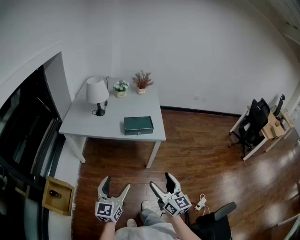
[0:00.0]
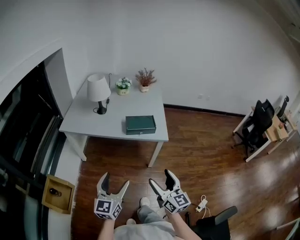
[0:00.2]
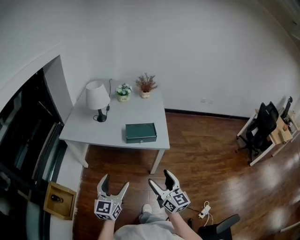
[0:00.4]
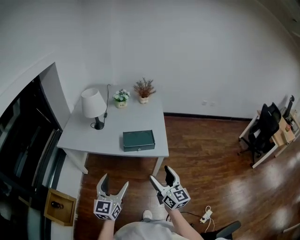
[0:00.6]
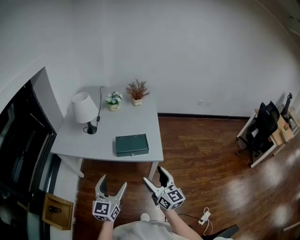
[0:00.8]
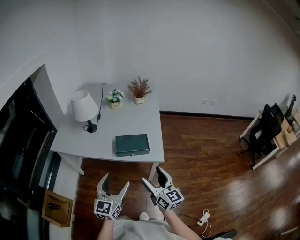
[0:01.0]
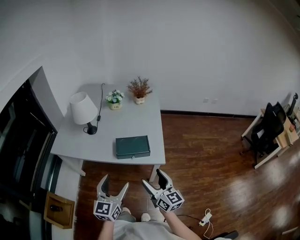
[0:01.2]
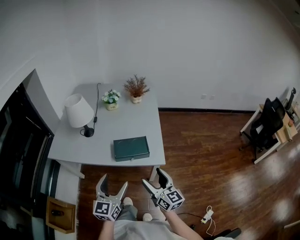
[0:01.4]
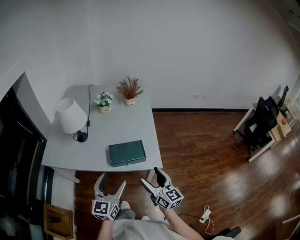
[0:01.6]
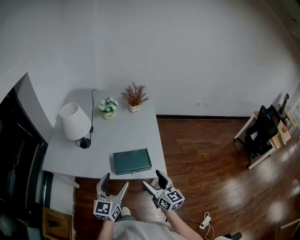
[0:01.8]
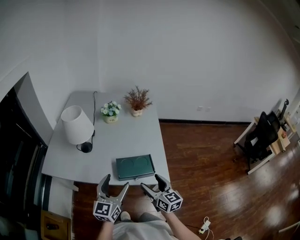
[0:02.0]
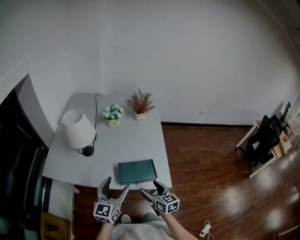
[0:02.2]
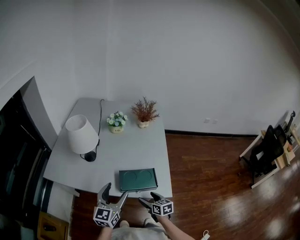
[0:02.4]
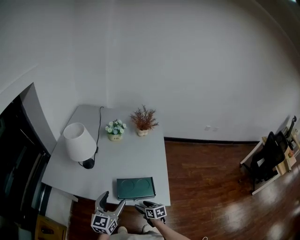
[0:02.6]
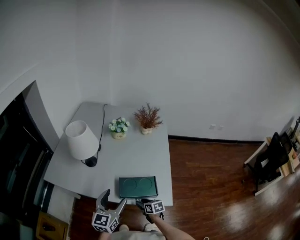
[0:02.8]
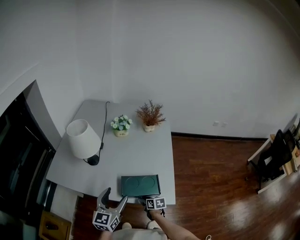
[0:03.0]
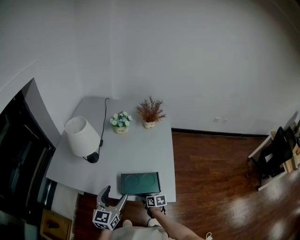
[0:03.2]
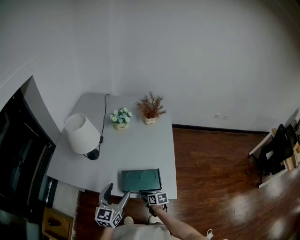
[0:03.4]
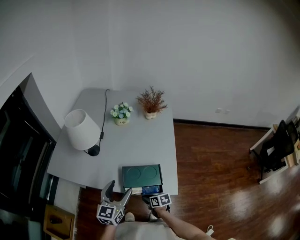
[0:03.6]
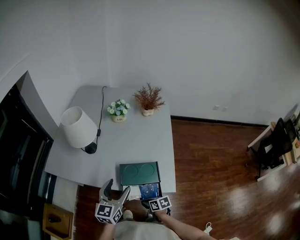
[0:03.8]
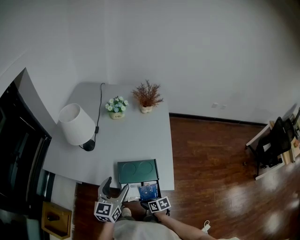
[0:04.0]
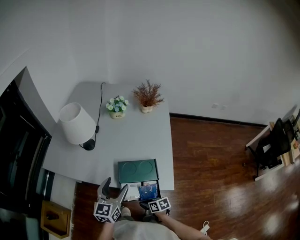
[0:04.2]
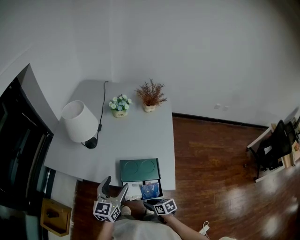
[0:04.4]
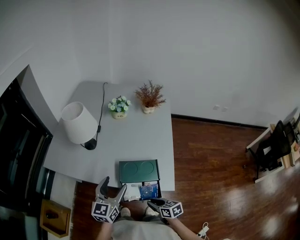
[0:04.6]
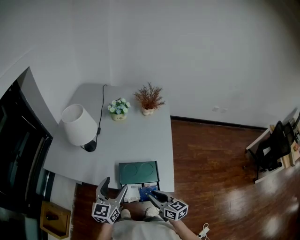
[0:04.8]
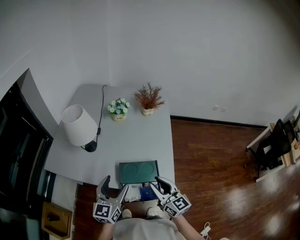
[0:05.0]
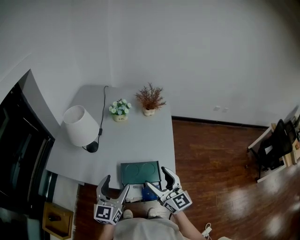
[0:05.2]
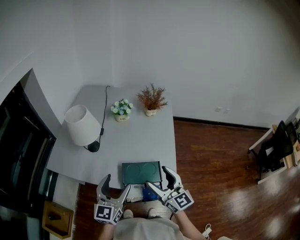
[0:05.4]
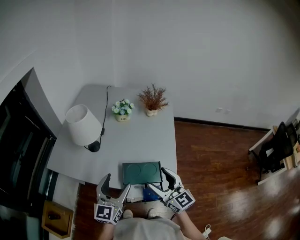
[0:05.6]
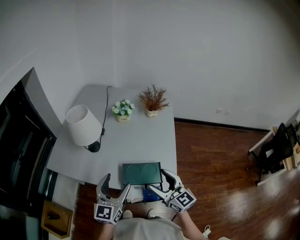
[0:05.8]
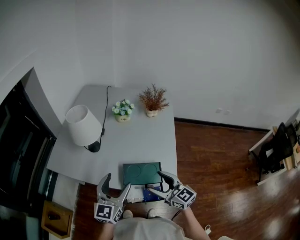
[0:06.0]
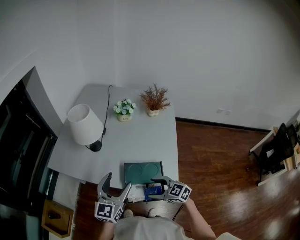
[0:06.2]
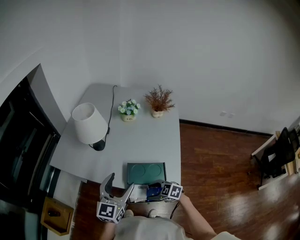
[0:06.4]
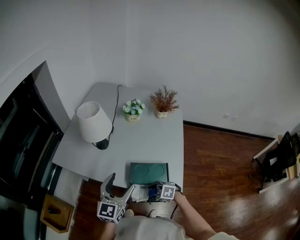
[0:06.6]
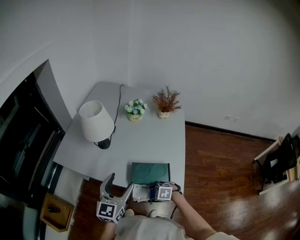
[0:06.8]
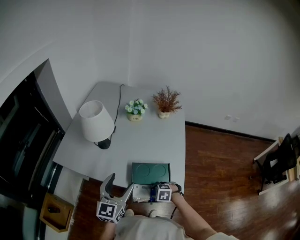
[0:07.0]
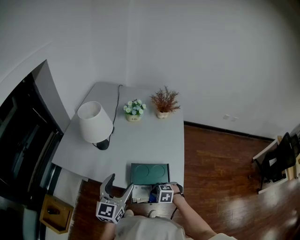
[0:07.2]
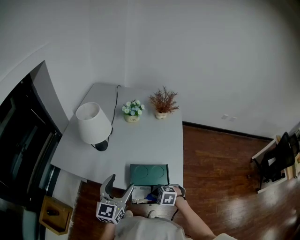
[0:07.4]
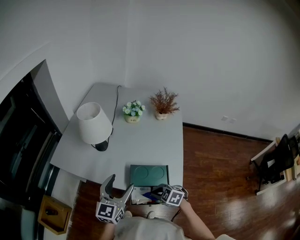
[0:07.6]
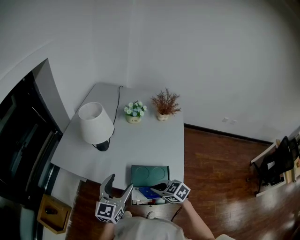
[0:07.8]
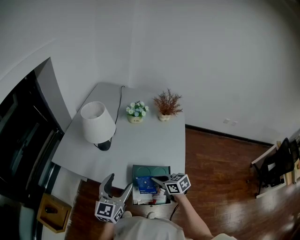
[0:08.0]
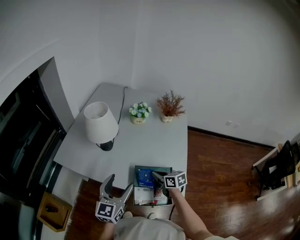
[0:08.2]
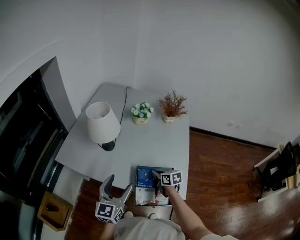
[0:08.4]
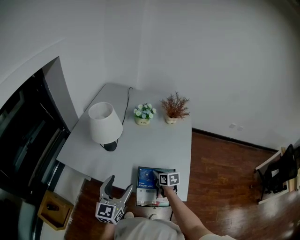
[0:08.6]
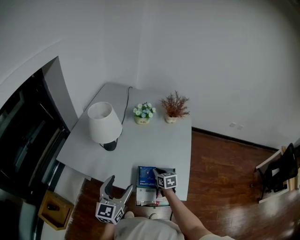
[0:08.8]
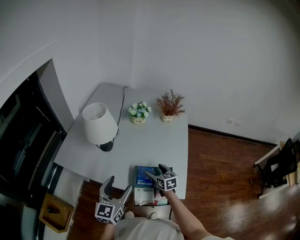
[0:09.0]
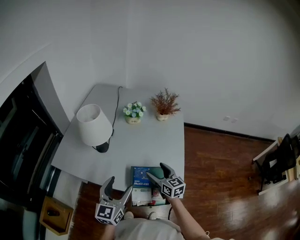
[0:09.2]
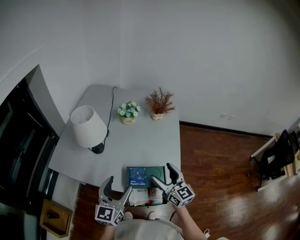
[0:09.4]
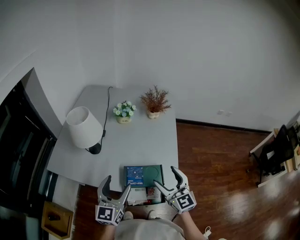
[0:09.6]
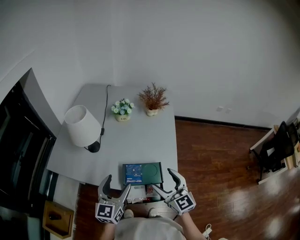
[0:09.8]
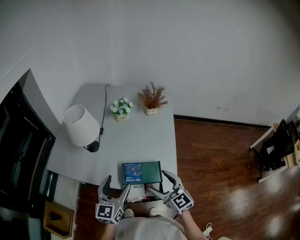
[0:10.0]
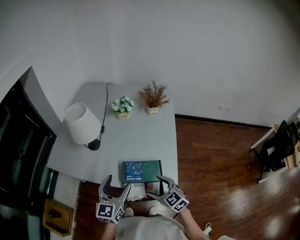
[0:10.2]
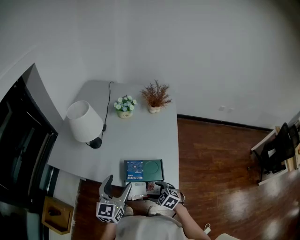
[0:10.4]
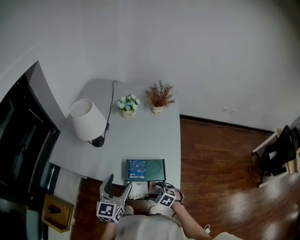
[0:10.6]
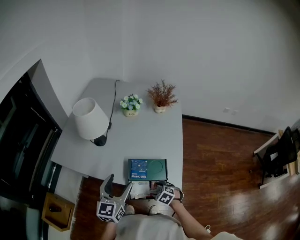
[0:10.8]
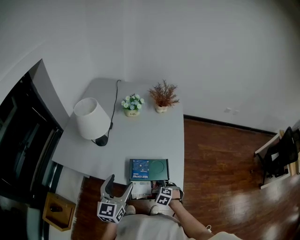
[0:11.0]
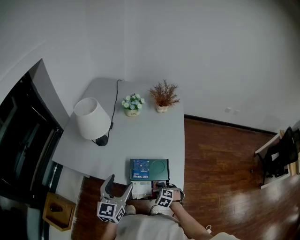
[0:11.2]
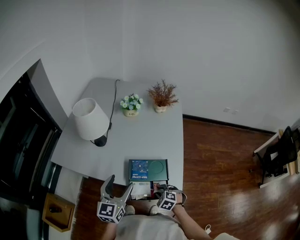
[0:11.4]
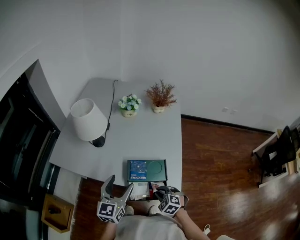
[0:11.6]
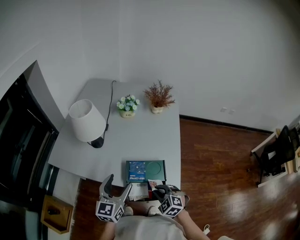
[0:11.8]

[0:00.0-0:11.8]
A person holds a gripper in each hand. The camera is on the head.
0:00.0 to 0:01.4: Both grippers travel together forward, roughly 30 cm.
0:01.4 to 0:03.0: The right gripper moves downward and forward, roughly 35 cm, tips its fingers downward by some 50 degrees, and closes its fingers, while the left gripper travels forward by roughly 20 cm.
0:03.0 to 0:04.4: The right gripper shifts approximately 15 cm backward.
0:04.4 to 0:06.0: The left gripper shifts some 5 cm upward; the right gripper is displaced upward and forward by about 30 cm, tips its fingers upward by about 40 degrees, and opens its fingers.
0:06.0 to 0:07.4: The right gripper is displaced downward by about 20 cm, points its fingers roughly 60 degrees further downward, and closes up.
0:07.4 to 0:08.8: The right gripper moves forward, about 20 cm, and rotates around the line of its fingers by about 60 degrees, clockwise from behind.
0:08.8 to 0:10.4: The right gripper heads backward, covering about 20 cm, goes upward and returns, about 25 cm each way, turns by about 40 degrees, and opens, while the left gripper heads to the right, covering roughly 5 cm.
0:10.4 to 0:11.8: The right gripper closes its fingers.

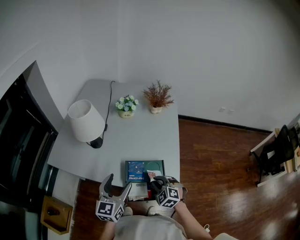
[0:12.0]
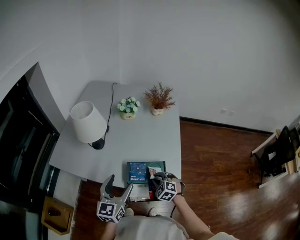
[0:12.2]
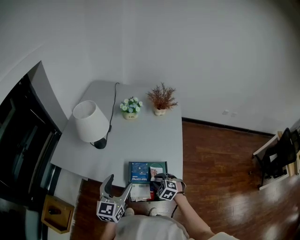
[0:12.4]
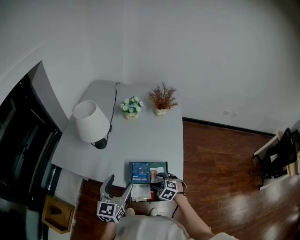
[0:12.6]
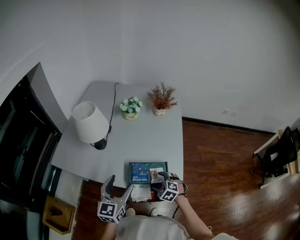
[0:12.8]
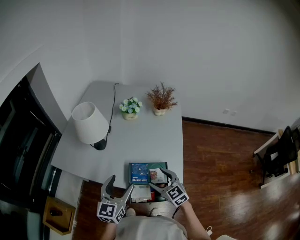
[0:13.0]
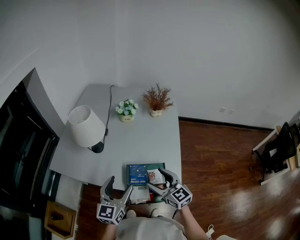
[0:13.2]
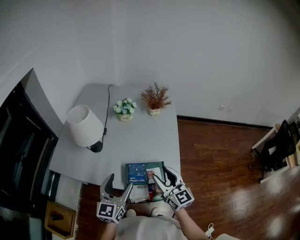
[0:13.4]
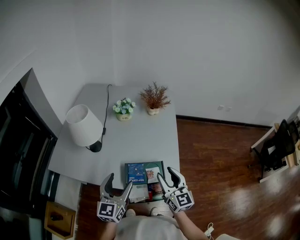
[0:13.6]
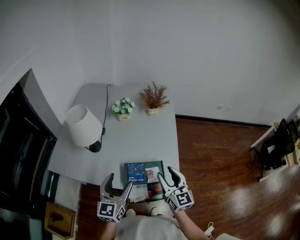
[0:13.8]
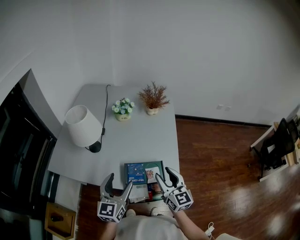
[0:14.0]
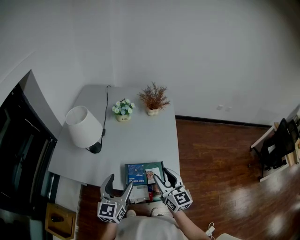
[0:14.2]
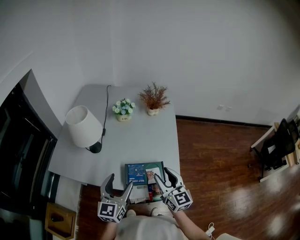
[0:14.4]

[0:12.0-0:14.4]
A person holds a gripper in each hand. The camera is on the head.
0:12.0 to 0:13.2: The right gripper goes roughly 15 cm upward, angles its fingers upward, by some 40 degrees, and opens up.

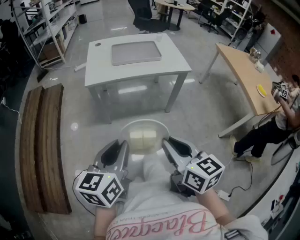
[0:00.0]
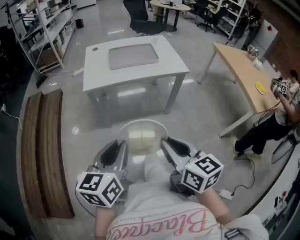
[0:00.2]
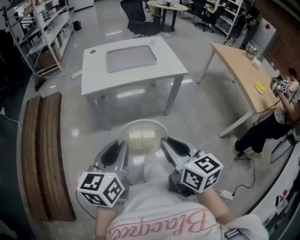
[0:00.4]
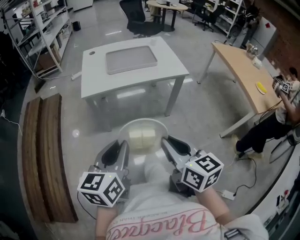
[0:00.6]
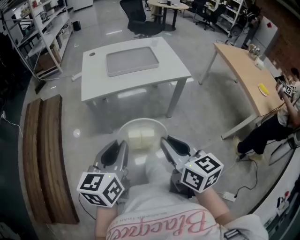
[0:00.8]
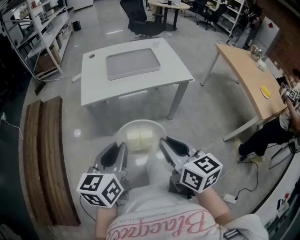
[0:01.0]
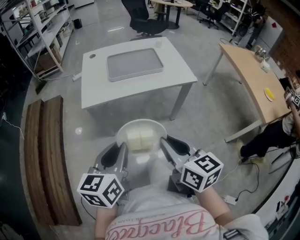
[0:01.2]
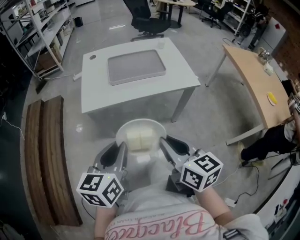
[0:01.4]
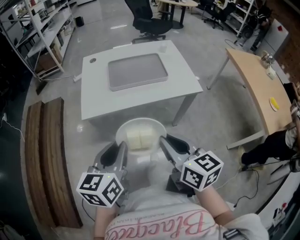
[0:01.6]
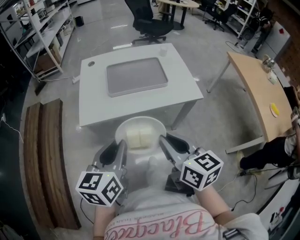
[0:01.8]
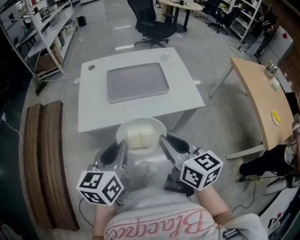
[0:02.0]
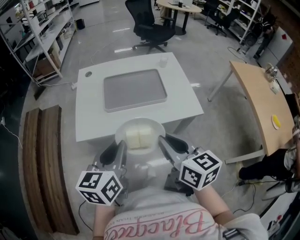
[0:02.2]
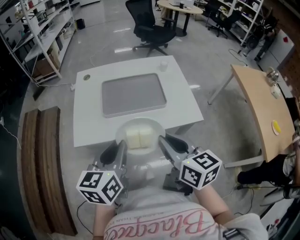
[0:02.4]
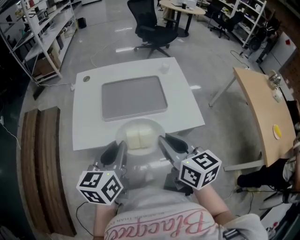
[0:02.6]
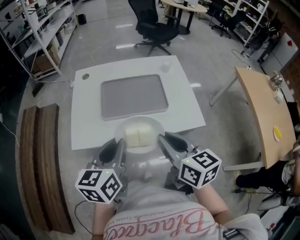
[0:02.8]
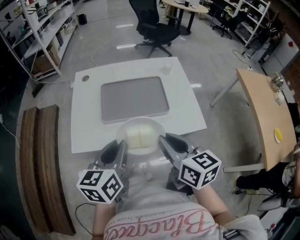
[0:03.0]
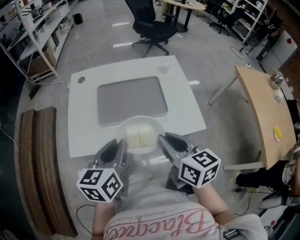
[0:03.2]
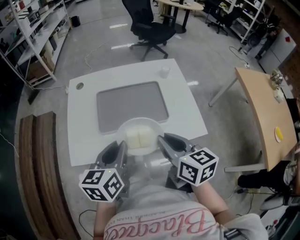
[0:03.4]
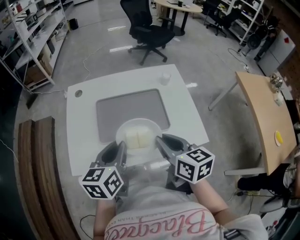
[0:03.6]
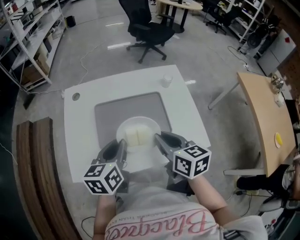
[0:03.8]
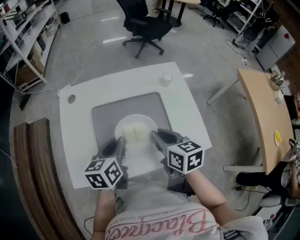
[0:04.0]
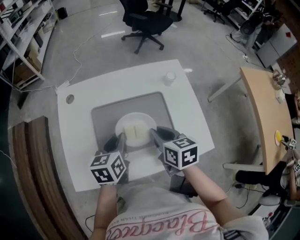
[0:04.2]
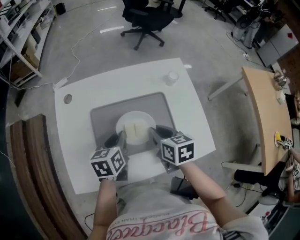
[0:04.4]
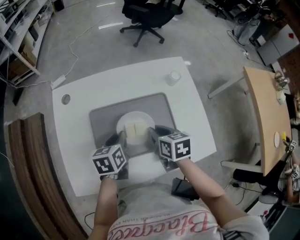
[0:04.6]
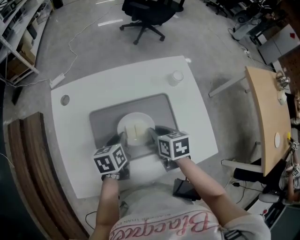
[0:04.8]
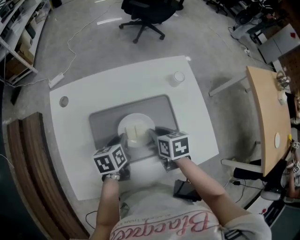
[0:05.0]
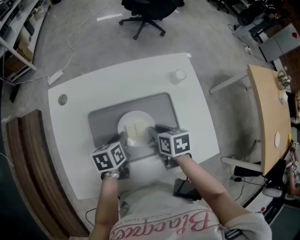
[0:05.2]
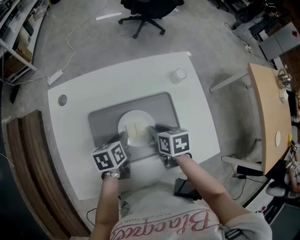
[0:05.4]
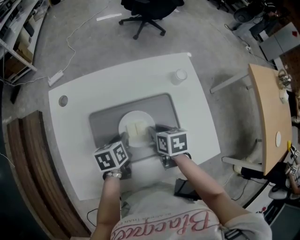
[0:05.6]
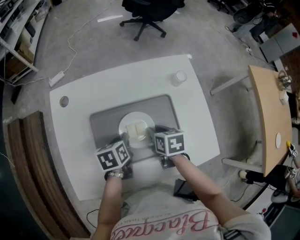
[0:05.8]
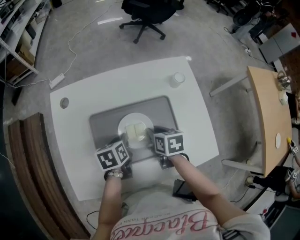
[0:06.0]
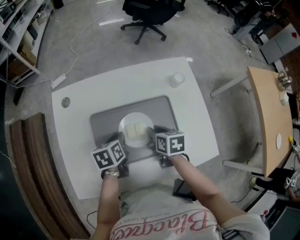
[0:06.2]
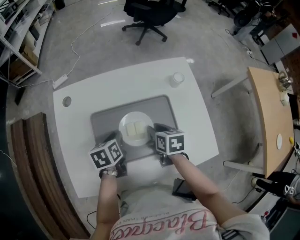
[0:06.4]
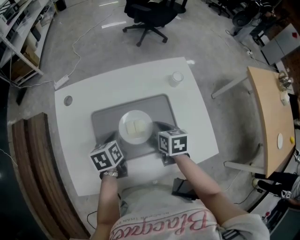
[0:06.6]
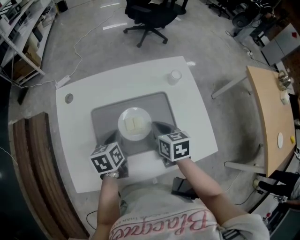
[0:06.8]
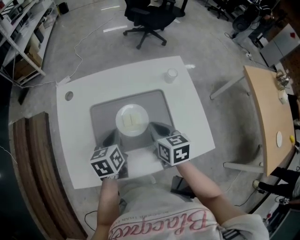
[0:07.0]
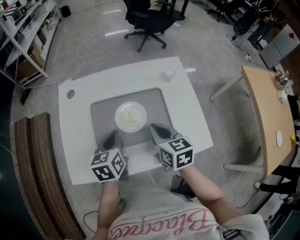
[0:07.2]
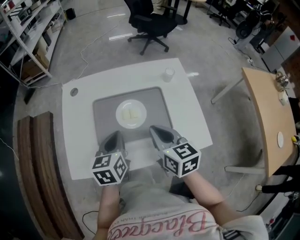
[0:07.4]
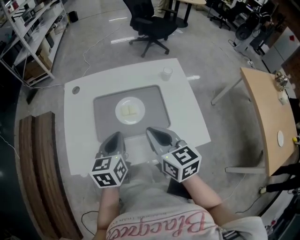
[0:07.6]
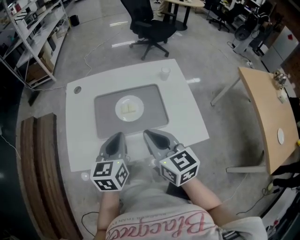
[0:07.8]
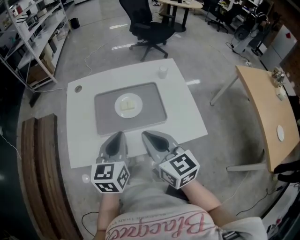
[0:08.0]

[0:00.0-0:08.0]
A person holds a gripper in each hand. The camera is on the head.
0:00.0 to 0:01.6: Both grippers travel together forward, approximately 15 cm.
0:01.6 to 0:03.2: The grippers both shift forward by approximately 20 cm.
0:03.2 to 0:04.8: Both grippers move forward and downward, some 25 cm. The right gripper swivels roughly 30 degrees, while the left gripper turns by approximately 30 degrees.
0:04.8 to 0:06.4: The grippers stay close to where they were, moving slightly.
0:06.4 to 0:08.0: Both grippers move upward and backward, some 25 cm. The right gripper points its fingers approximately 40 degrees further upward, and closes its fingers. The left gripper tips its fingers upward by about 30 degrees.

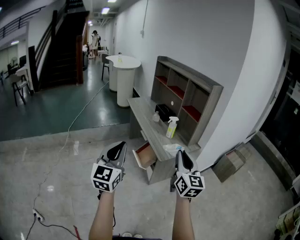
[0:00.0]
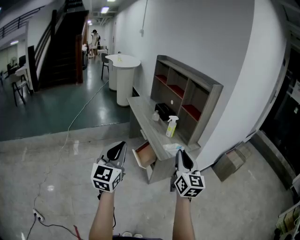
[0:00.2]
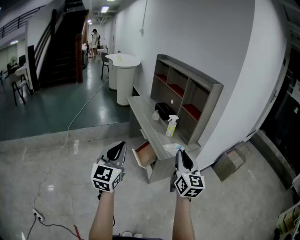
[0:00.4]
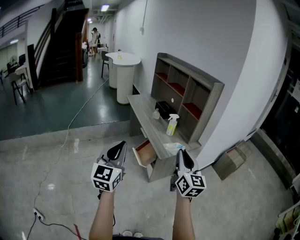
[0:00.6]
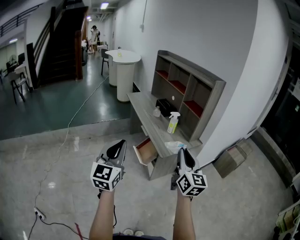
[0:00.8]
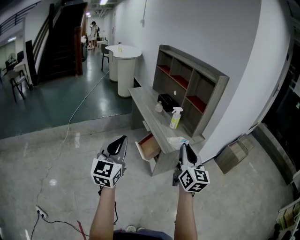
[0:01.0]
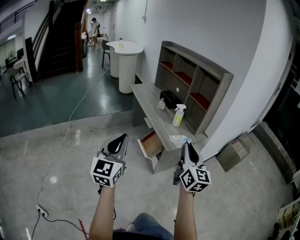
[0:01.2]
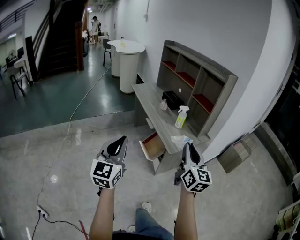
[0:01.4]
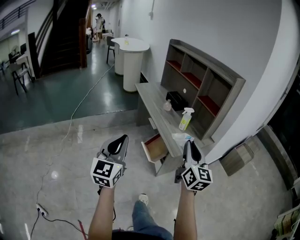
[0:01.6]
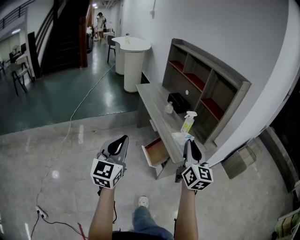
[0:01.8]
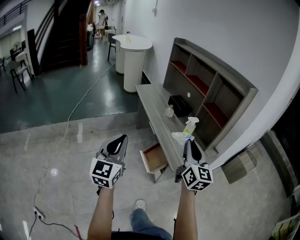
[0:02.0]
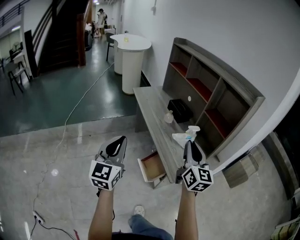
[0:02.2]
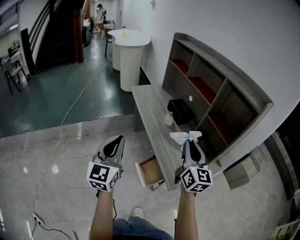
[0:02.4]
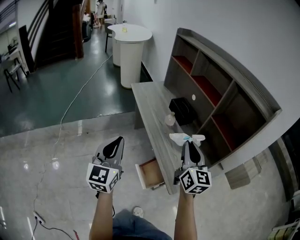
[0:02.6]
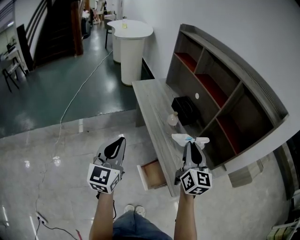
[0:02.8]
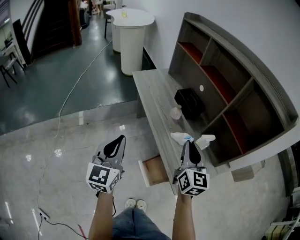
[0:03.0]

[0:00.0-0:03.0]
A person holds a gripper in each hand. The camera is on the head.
0:00.0 to 0:01.6: The grippers both shift forward and to the left by roughly 10 cm.
0:01.6 to 0:03.0: The grippers both shift forward by some 35 cm.
